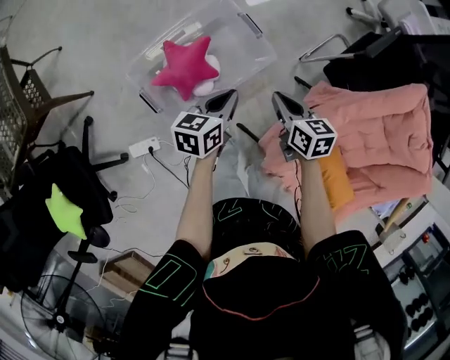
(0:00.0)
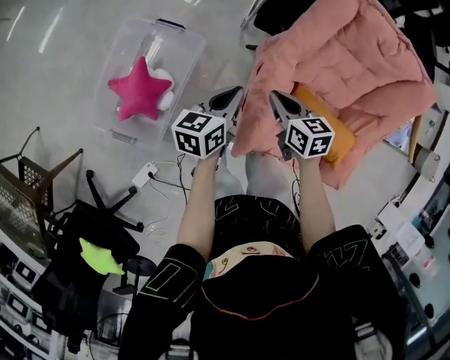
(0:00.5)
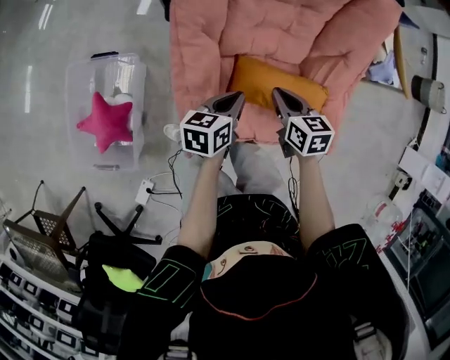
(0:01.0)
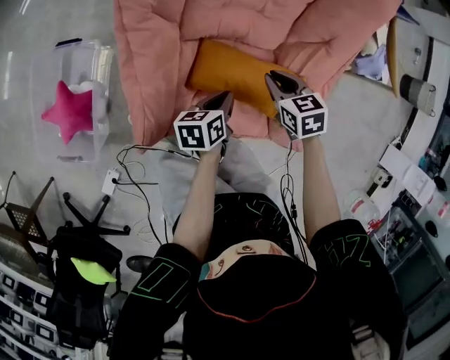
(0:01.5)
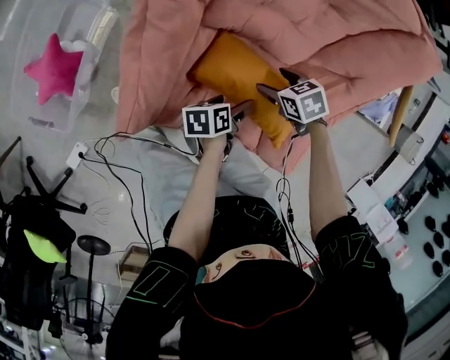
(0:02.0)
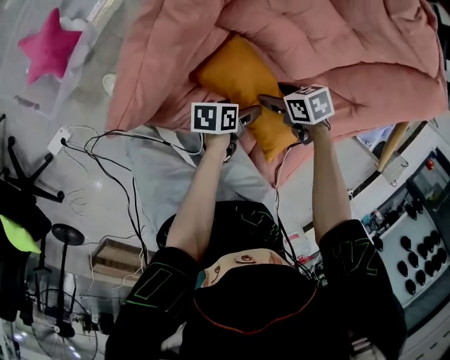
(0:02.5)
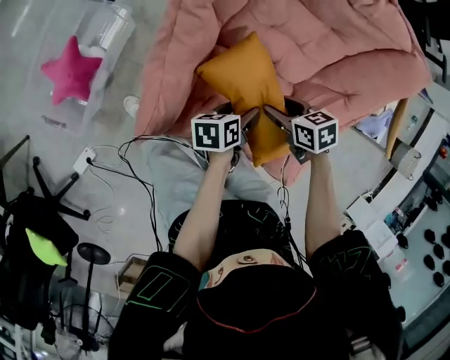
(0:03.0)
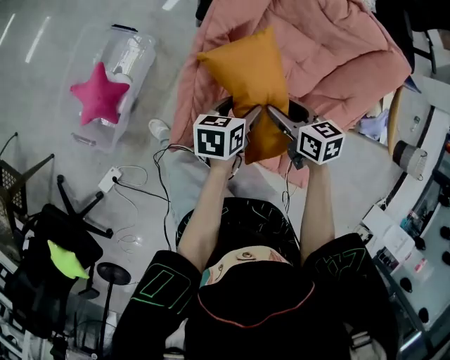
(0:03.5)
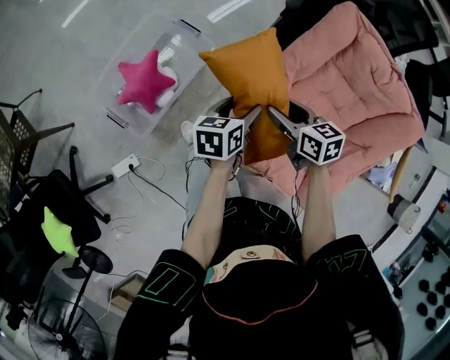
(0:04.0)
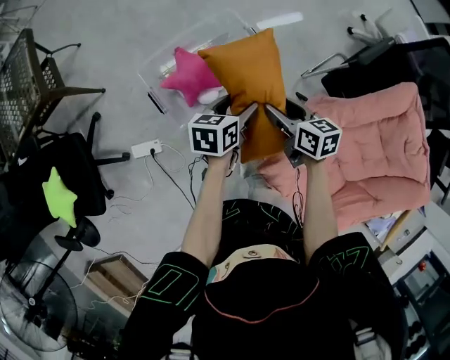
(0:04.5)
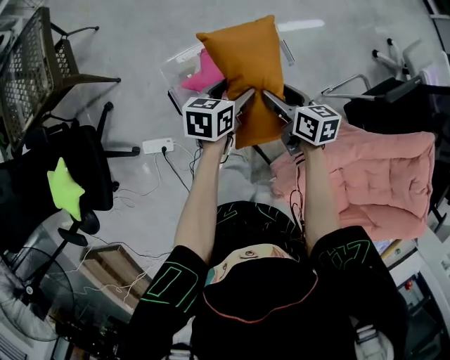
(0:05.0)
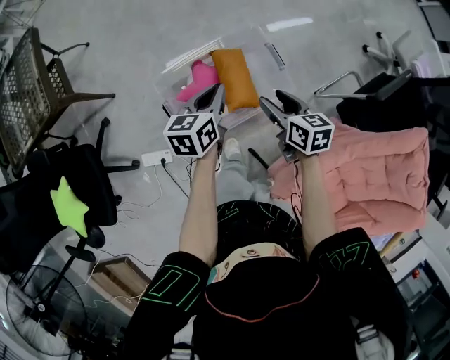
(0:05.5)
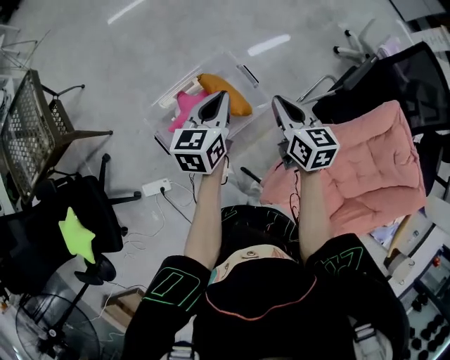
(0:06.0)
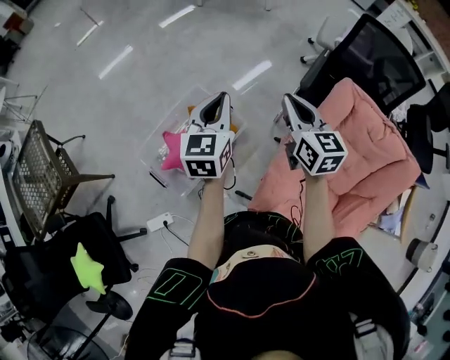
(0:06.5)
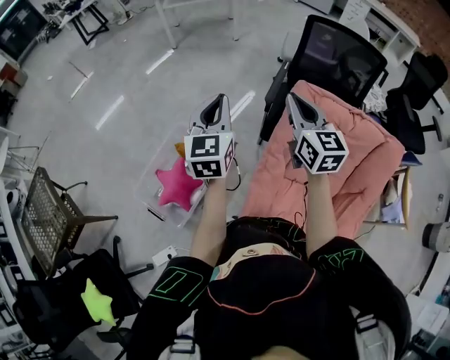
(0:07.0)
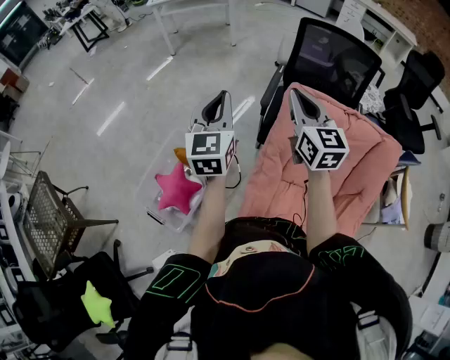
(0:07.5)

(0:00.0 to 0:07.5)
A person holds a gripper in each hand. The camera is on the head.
0:00.0 - 0:02.0: The pair of grippers is taken some 60 cm. The right gripper rotates some 30 degrees, and opens, while the left gripper turns by about 40 degrees, and opens its fingers.
0:02.0 - 0:04.0: The right gripper changes place by about 40 cm, and rotates some 30 degrees. The left gripper moves about 40 cm, and swivels roughly 30 degrees.
0:04.0 - 0:05.5: The right gripper changes place by about 40 cm. The left gripper ends up approximately 40 cm from where it was, turns by about 30 degrees, and closes.
0:05.5 - 0:07.5: The pair of grippers is taken roughly 40 cm. The left gripper rotates around the line of its fingers by roughly 40 degrees, clockwise from behind. Meanwhile the right gripper tips its fingers upward by roughly 40 degrees, and closes its fingers.

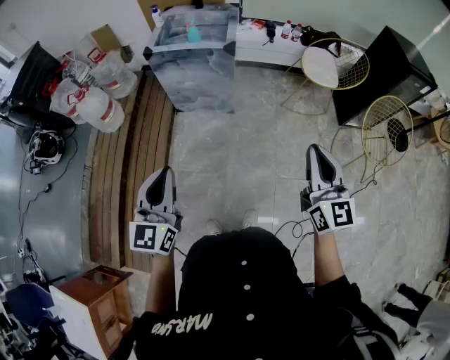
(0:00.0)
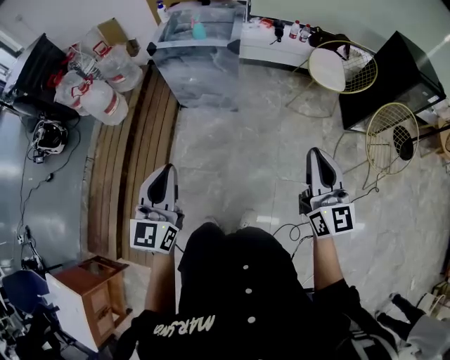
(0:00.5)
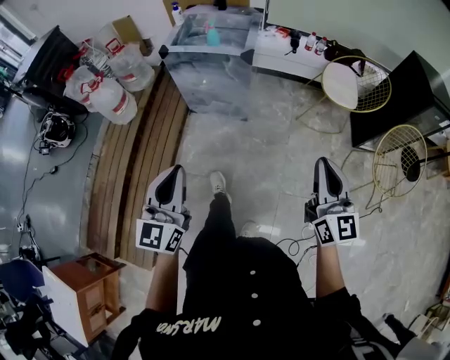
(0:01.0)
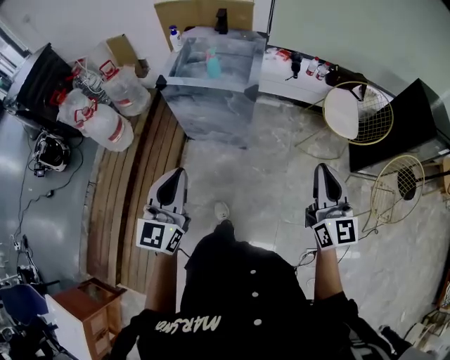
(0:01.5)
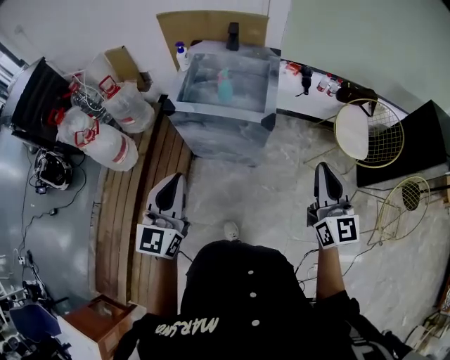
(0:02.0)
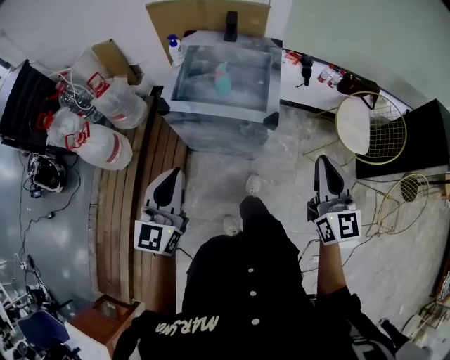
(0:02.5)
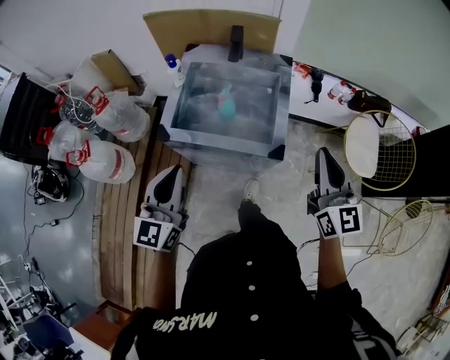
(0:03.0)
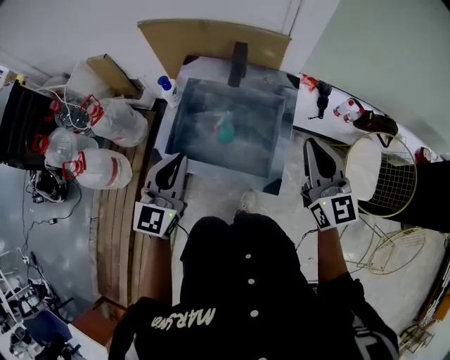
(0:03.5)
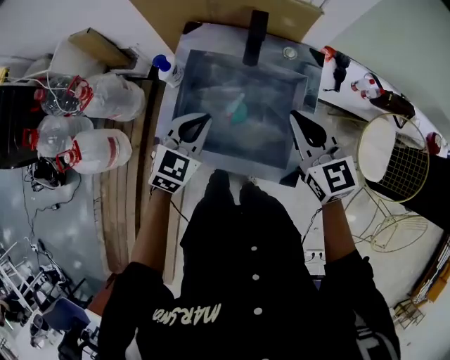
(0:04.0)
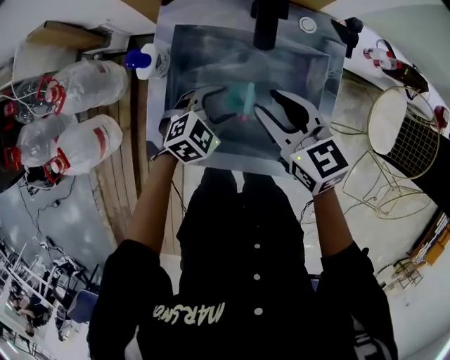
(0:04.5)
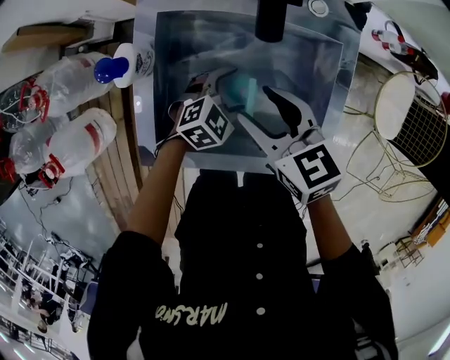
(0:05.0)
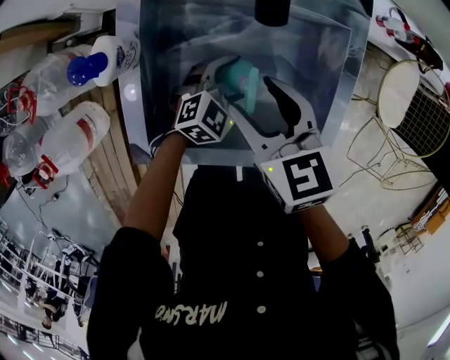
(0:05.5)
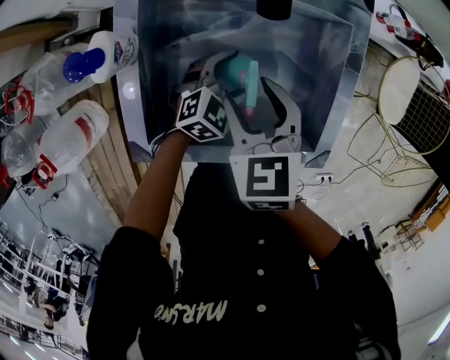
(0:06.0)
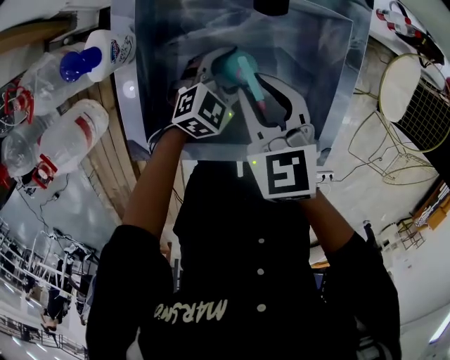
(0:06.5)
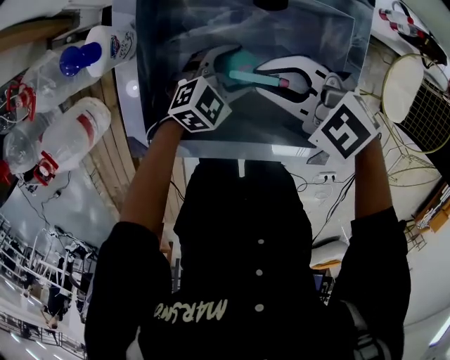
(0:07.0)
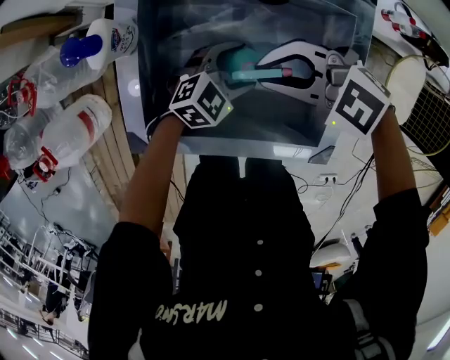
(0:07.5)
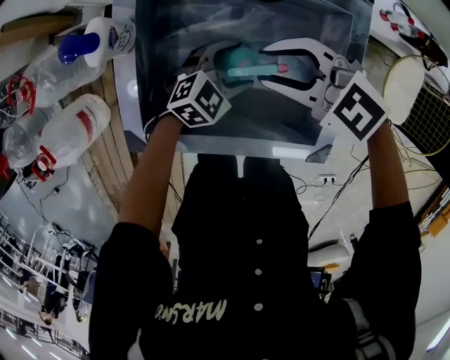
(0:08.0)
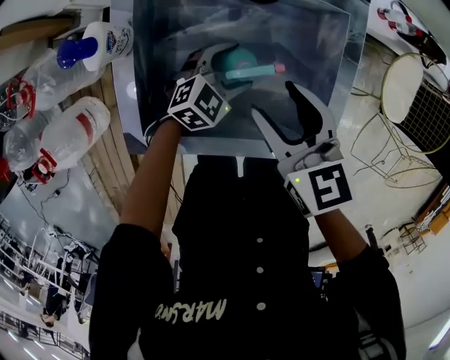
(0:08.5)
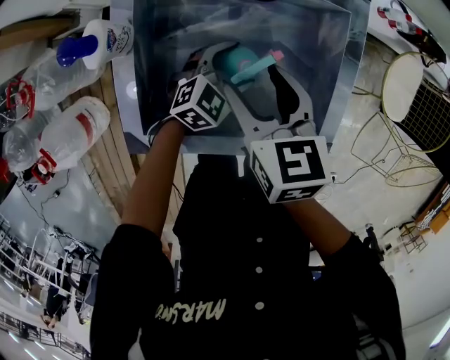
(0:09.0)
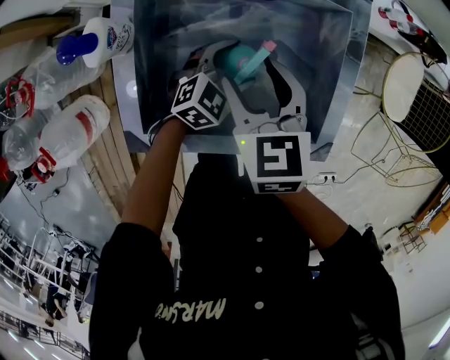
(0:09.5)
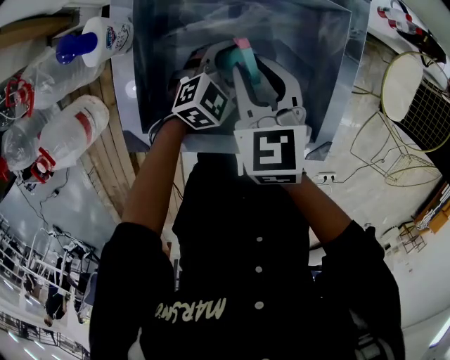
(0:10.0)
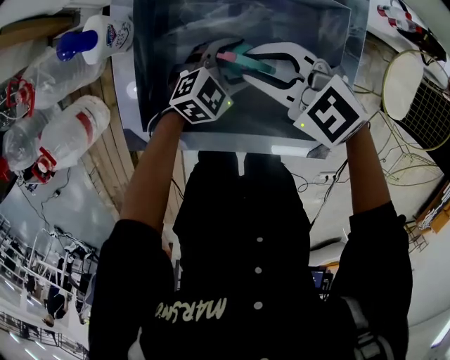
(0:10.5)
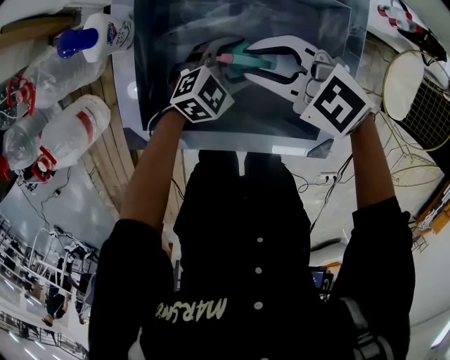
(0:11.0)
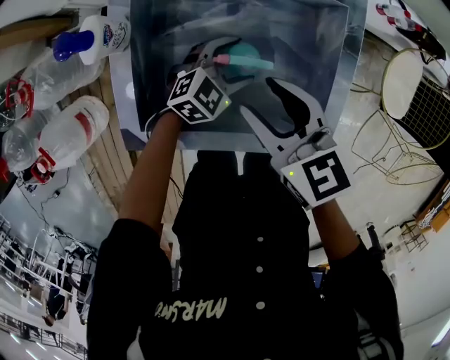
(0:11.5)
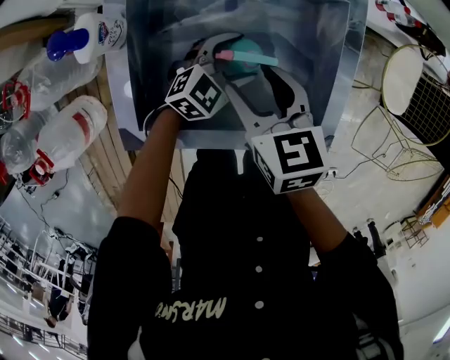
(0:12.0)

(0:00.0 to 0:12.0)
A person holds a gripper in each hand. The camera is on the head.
0:00.0 - 0:02.0: Both grippers travel together forward, about 40 cm.
0:02.0 - 0:04.0: The two grippers travel together, forward, approximately 50 cm. The right gripper rotates some 30 degrees. The left gripper points its fingers approximately 30 degrees further downward.
0:04.0 - 0:06.0: The left gripper shifts approximately 25 cm downward, turns by roughly 30 degrees, and opens its fingers, while the right gripper shifts some 25 cm downward and to the left, tilts its fingers roughly 30 degrees downward, and opens up.
0:06.0 - 0:08.0: The right gripper turns by approximately 60 degrees.
0:08.0 - 0:10.0: The right gripper rotates approximately 60 degrees, and opens and closes again.
0:10.0 - 0:12.0: The right gripper opens its fingers.

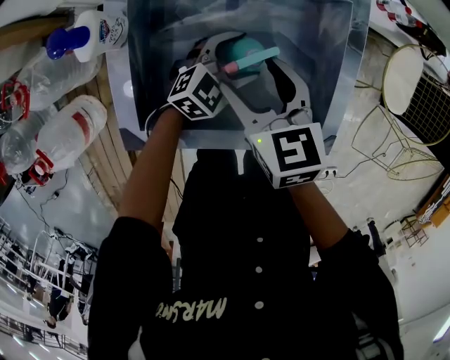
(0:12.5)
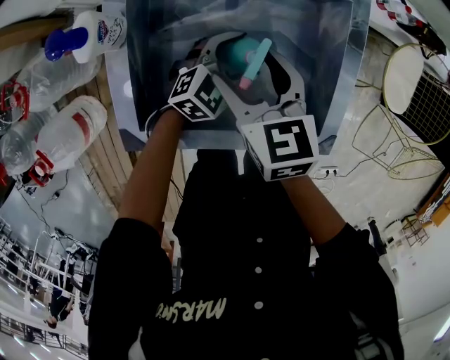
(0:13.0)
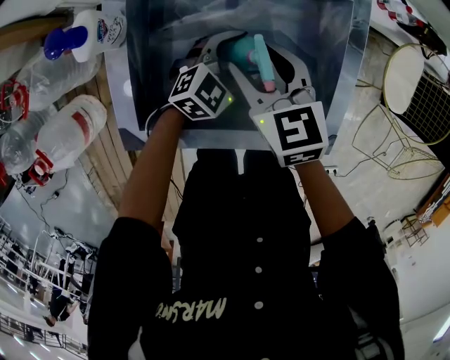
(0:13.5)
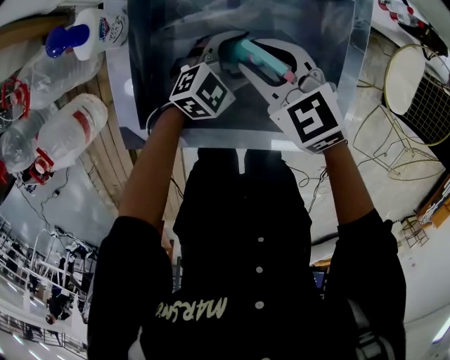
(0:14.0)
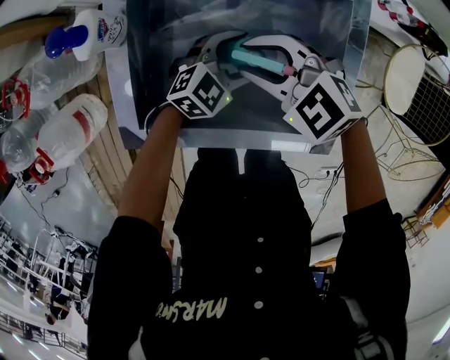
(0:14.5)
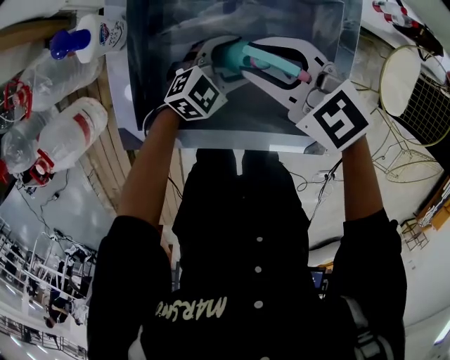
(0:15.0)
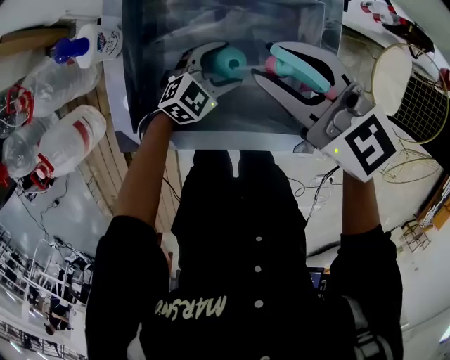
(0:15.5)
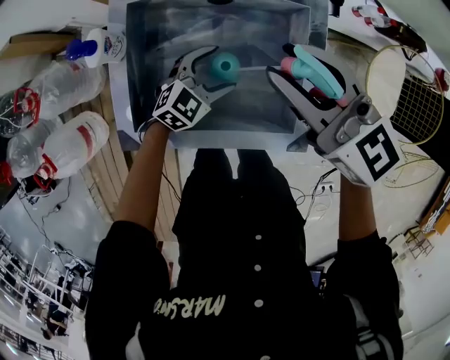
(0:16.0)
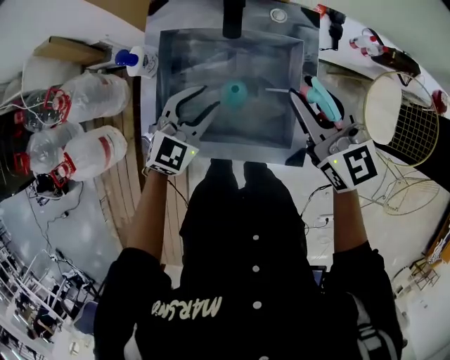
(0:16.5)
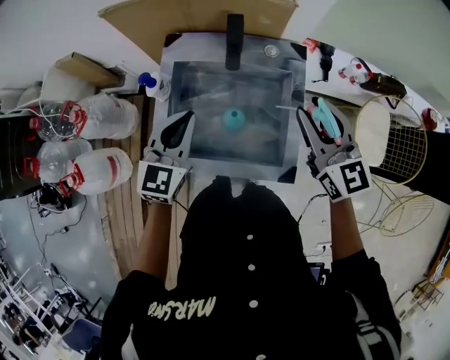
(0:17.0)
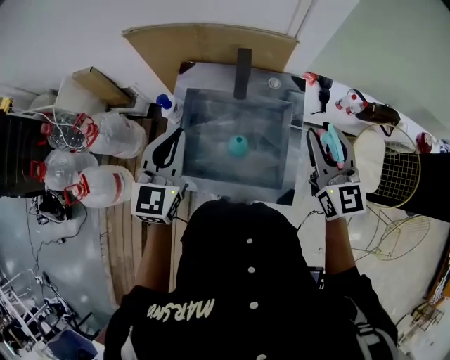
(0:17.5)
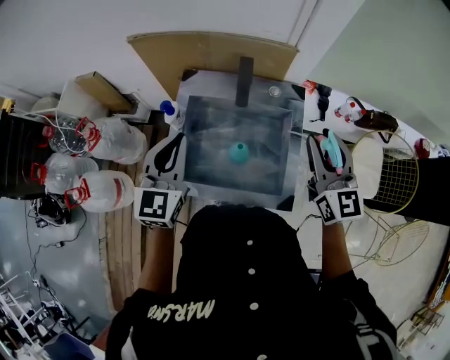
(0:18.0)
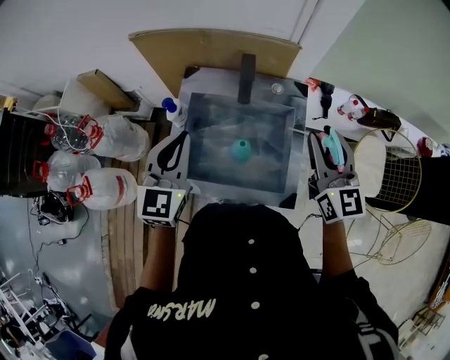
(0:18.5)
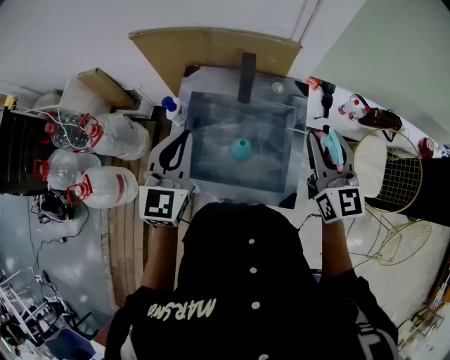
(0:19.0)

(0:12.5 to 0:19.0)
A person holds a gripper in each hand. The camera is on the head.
0:12.5 - 0:14.5: The right gripper twists approximately 50 degrees counterclockwise, seen from behind, and closes up.
0:14.5 - 0:17.0: The two grippers go some 30 cm upward. The right gripper points its fingers approximately 30 degrees further upward; the left gripper changes its angle by roughly 40 degrees, and closes up.
0:17.0 - 0:19.0: The left gripper shifts roughly 10 cm upward.
